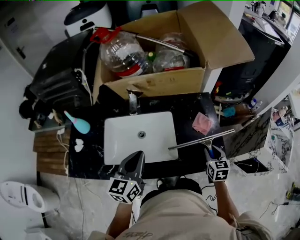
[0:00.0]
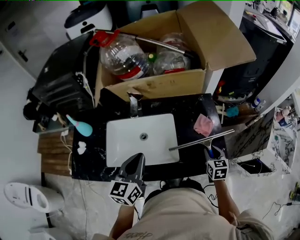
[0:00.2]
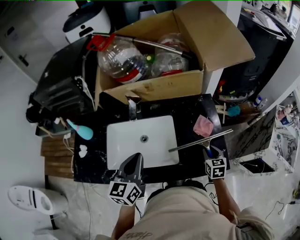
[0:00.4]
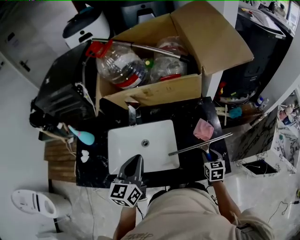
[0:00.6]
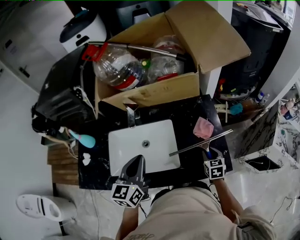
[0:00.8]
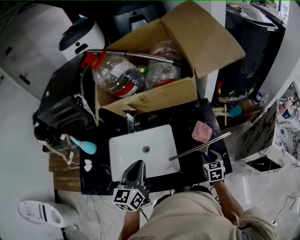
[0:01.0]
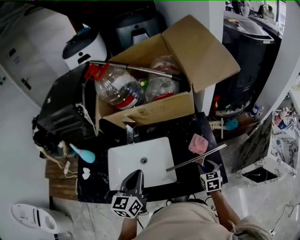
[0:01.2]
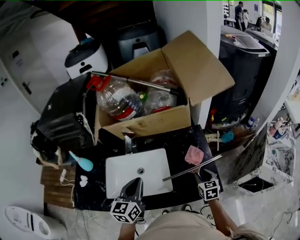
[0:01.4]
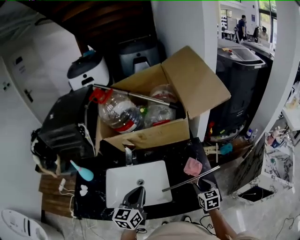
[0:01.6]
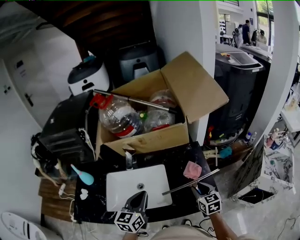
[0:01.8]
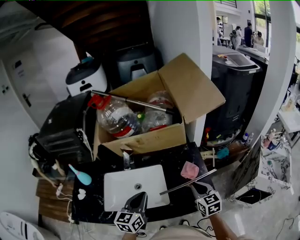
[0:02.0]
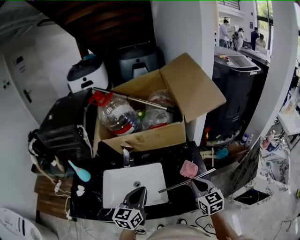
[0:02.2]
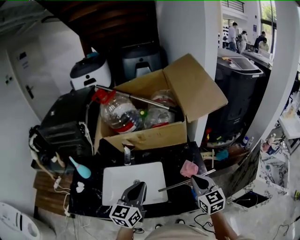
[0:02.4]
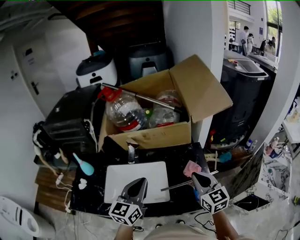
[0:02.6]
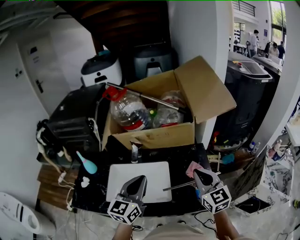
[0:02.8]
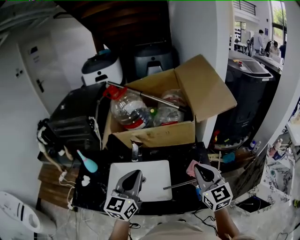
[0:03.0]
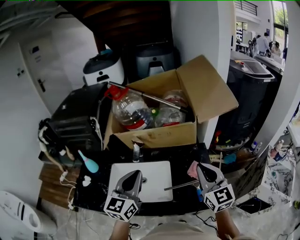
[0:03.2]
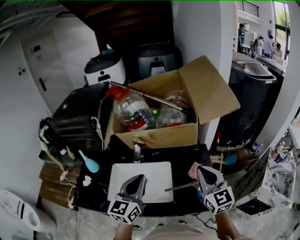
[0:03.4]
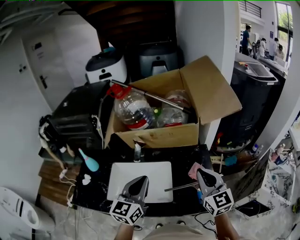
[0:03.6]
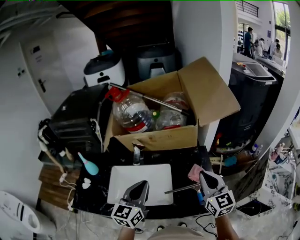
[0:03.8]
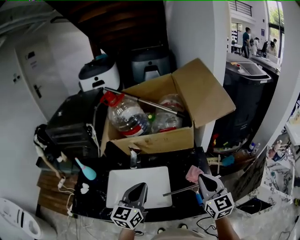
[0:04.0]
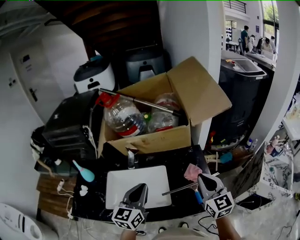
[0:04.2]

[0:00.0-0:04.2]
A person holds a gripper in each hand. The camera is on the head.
0:01.4 to 0:02.8: The left gripper is displaced upward by some 10 cm. The right gripper is displaced upward by approximately 25 cm, changes its angle by about 40 degrees, and closes.
0:02.8 to 0:04.2: The grippers make only small movements.

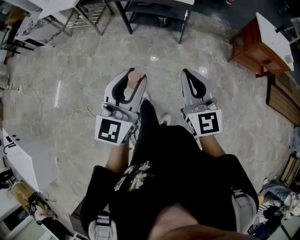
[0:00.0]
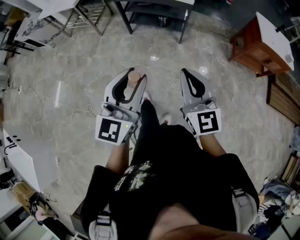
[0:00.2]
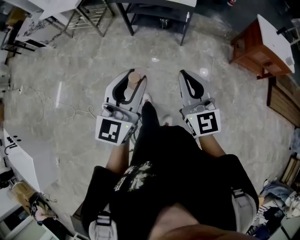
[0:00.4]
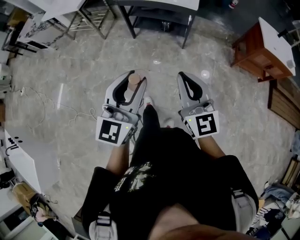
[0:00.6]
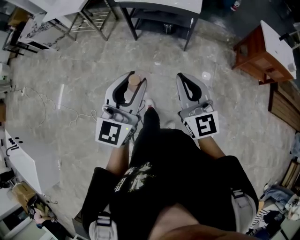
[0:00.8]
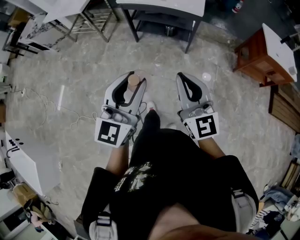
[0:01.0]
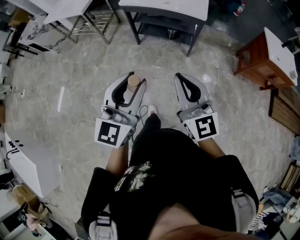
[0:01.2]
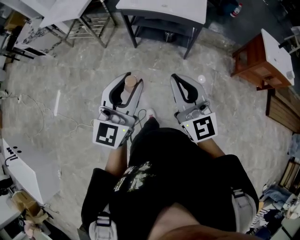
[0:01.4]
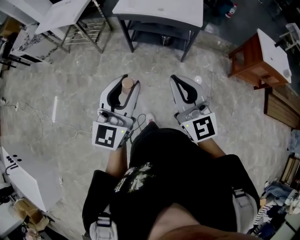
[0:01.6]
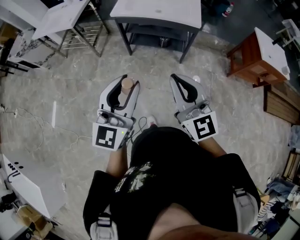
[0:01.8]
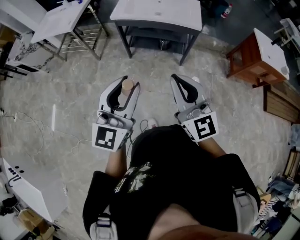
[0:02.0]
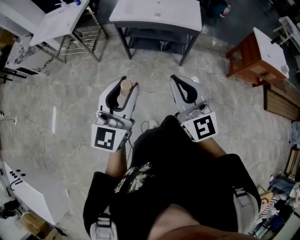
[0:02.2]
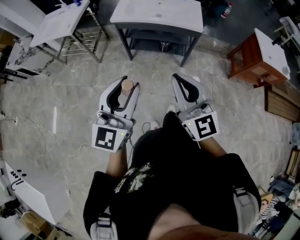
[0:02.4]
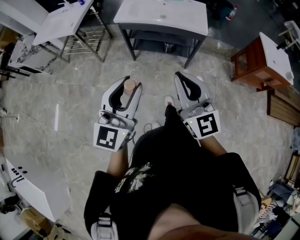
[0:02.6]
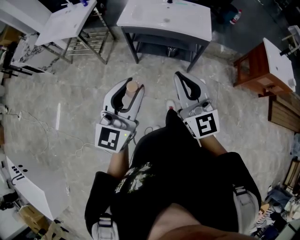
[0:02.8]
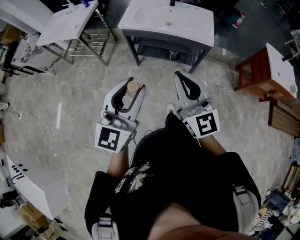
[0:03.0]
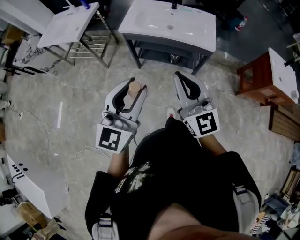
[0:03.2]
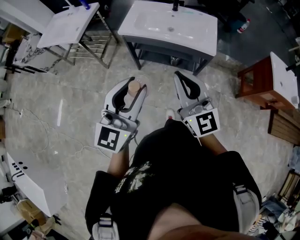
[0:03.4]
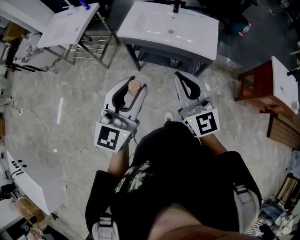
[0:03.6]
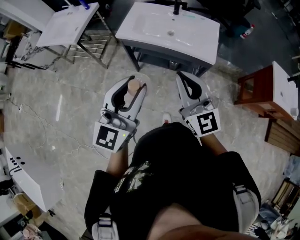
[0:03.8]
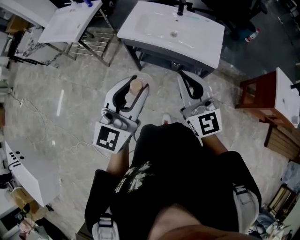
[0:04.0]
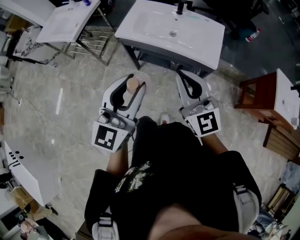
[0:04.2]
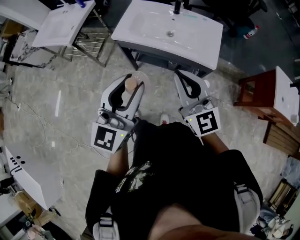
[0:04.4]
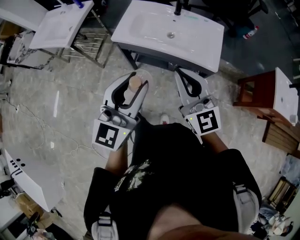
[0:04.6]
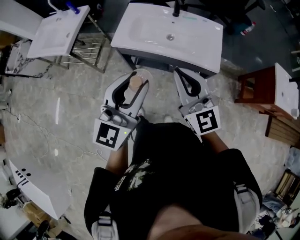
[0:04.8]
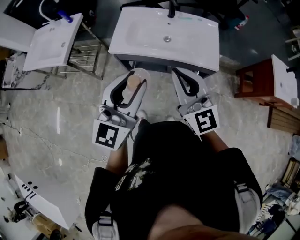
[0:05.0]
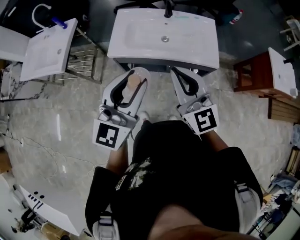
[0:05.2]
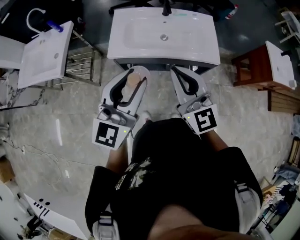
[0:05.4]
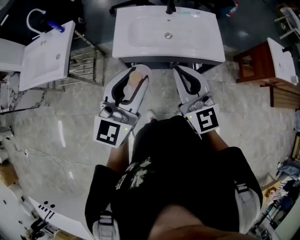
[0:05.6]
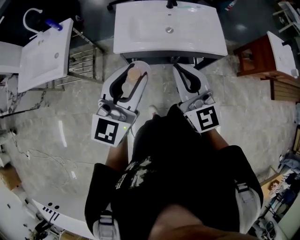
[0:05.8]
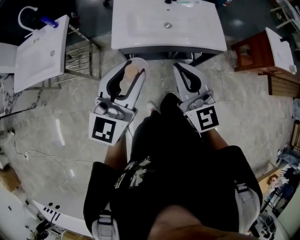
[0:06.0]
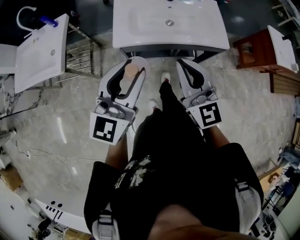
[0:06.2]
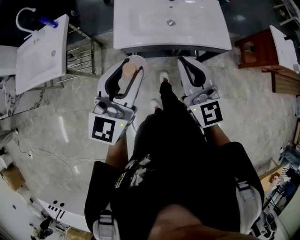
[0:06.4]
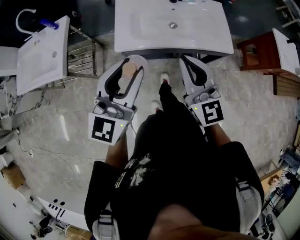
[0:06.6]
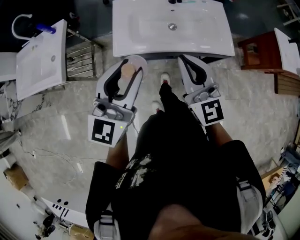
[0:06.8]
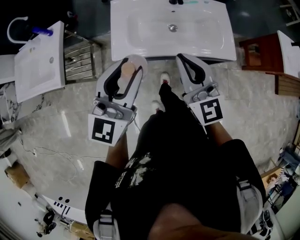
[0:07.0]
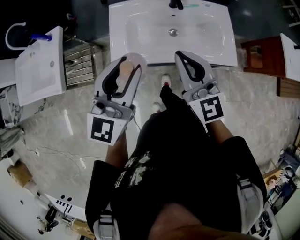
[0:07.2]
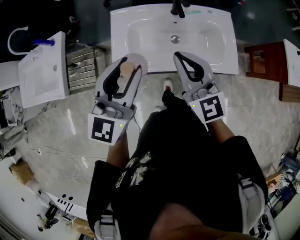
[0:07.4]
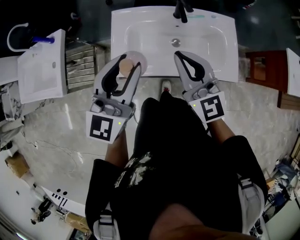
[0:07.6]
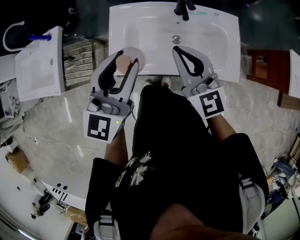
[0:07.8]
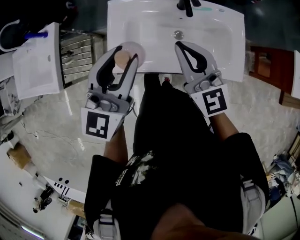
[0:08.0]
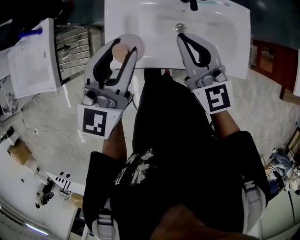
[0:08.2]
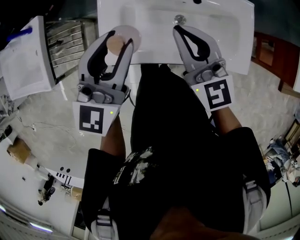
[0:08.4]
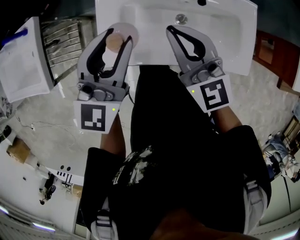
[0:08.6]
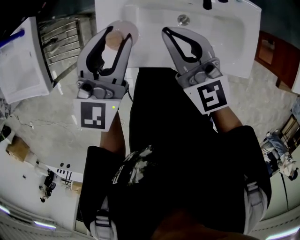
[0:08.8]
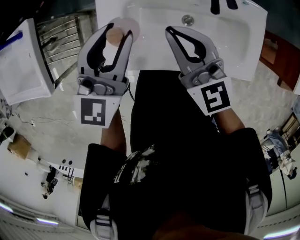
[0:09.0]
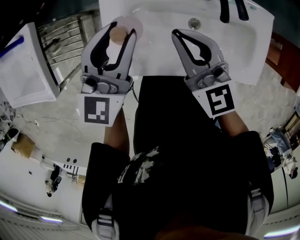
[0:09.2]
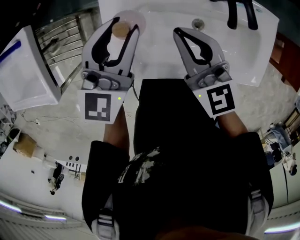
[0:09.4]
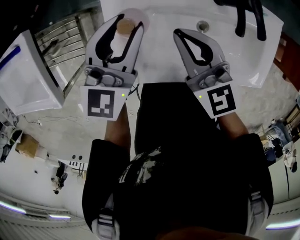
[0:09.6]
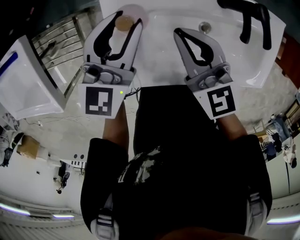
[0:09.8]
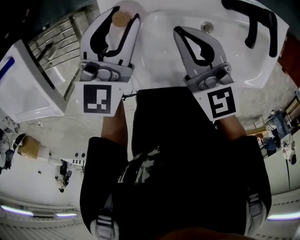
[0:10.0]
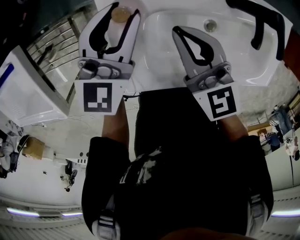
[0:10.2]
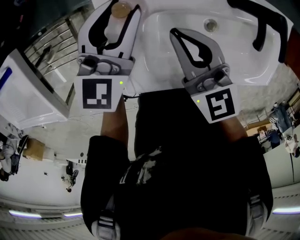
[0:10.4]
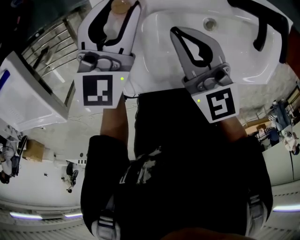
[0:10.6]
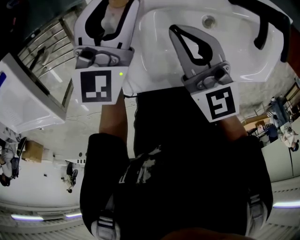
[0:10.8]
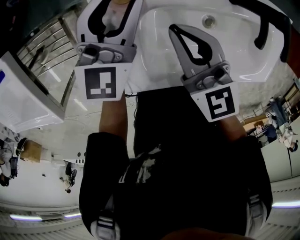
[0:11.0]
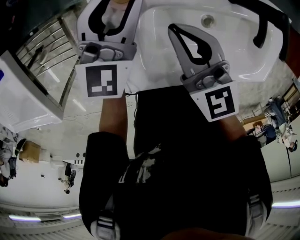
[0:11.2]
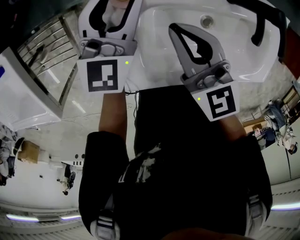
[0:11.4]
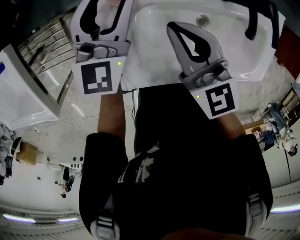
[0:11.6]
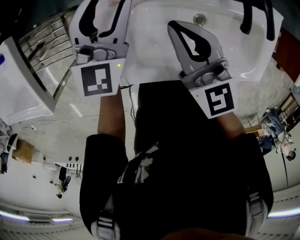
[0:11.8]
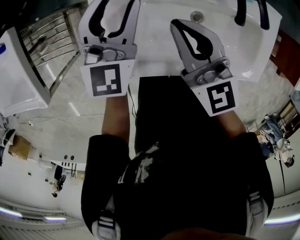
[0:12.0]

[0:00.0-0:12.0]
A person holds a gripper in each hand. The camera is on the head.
0:00.0 to 0:01.6: The two grippers go approximately 25 cm forward and to the left.
0:01.6 to 0:03.0: Both grippers travel together forward, approximately 20 cm.
0:03.0 to 0:04.4: Both grippers move forward, about 25 cm.
0:04.4 to 0:06.0: The two grippers go approximately 25 cm to the left and forward. The left gripper rotates some 20 degrees. Meanwhile the right gripper swivels some 20 degrees.
0:06.0 to 0:07.6: Both grippers travel together forward, some 30 cm.
0:07.6 to 0:09.0: The left gripper goes roughly 25 cm forward and downward. The right gripper shifts approximately 25 cm forward, downward and to the left.
0:09.0 to 0:10.4: The right gripper moves downward, forward and to the left, about 20 cm. Meanwhile the left gripper travels forward and downward by approximately 25 cm.
0:10.4 to 0:12.0: Both grippers move backward, roughly 5 cm.

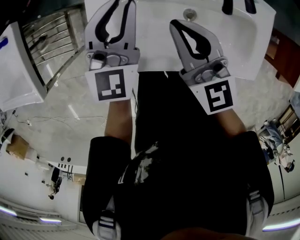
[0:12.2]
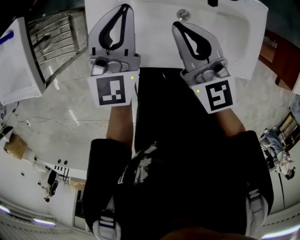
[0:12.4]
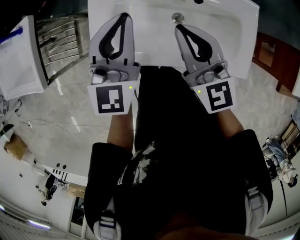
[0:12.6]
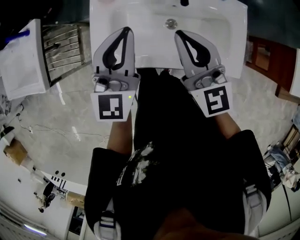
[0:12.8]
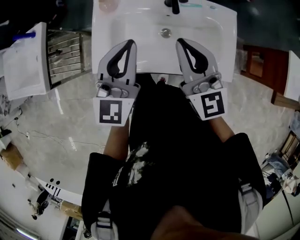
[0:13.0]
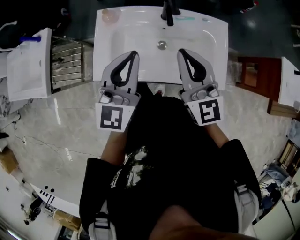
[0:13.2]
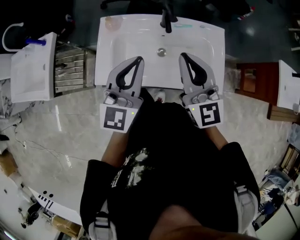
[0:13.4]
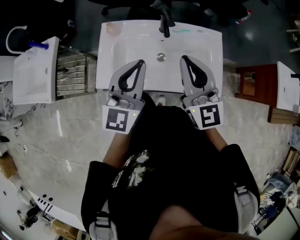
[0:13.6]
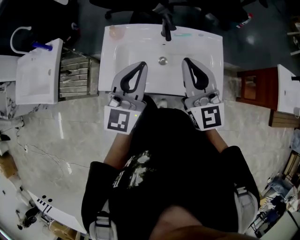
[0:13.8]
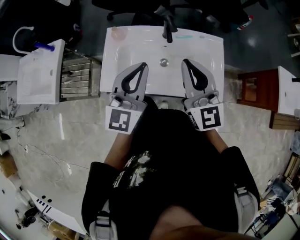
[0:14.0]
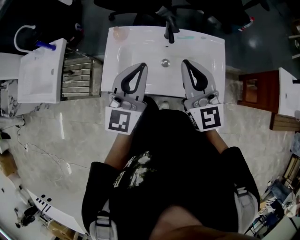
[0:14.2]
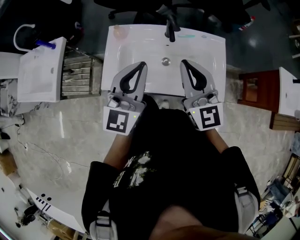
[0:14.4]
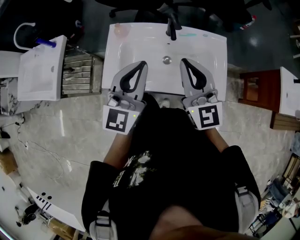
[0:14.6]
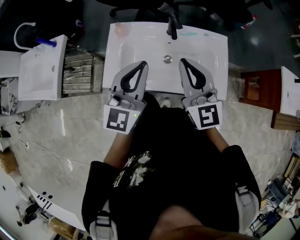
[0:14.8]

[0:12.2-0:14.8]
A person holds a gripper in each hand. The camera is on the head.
0:12.2 to 0:13.4: The left gripper is displaced backward, upward and to the right by about 35 cm, while the right gripper travels upward, backward and to the right by some 35 cm, and turns by roughly 20 degrees.
0:13.4 to 0:14.8: The grippers make only small movements.

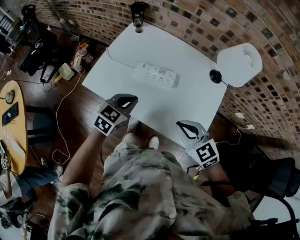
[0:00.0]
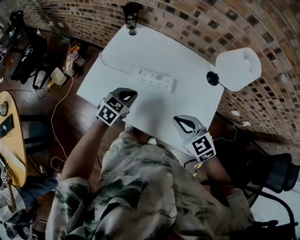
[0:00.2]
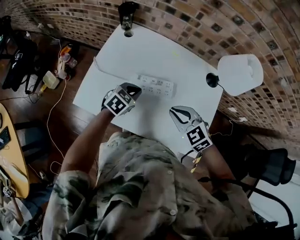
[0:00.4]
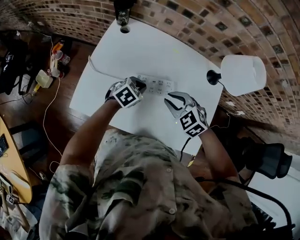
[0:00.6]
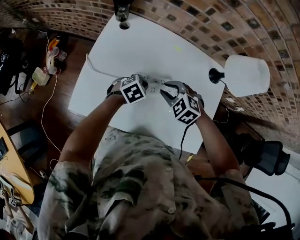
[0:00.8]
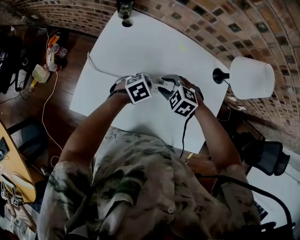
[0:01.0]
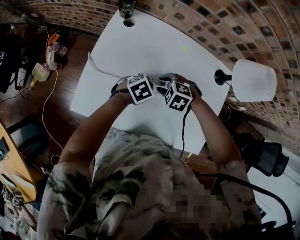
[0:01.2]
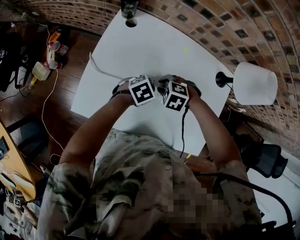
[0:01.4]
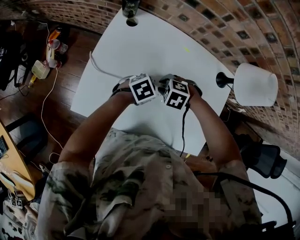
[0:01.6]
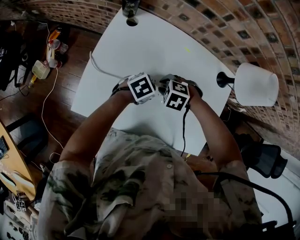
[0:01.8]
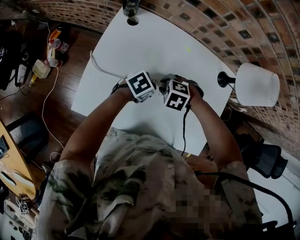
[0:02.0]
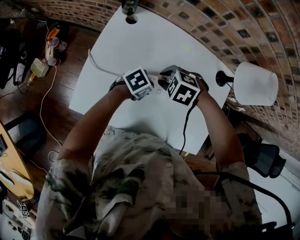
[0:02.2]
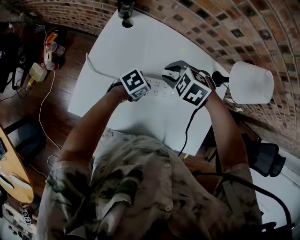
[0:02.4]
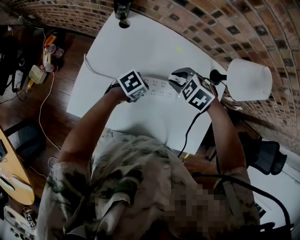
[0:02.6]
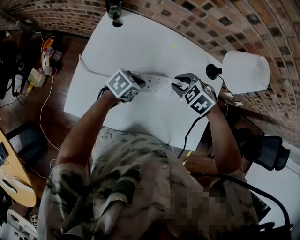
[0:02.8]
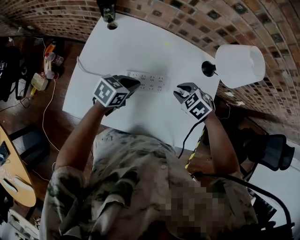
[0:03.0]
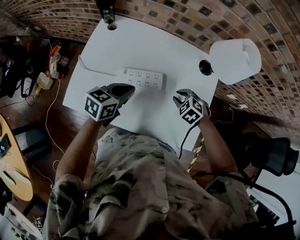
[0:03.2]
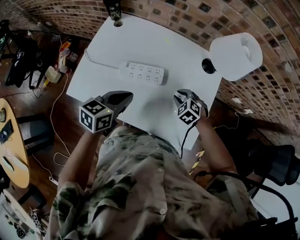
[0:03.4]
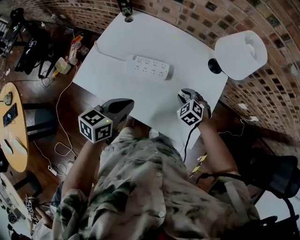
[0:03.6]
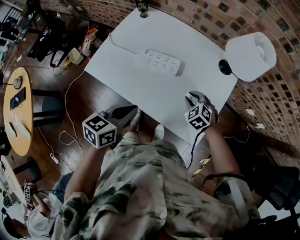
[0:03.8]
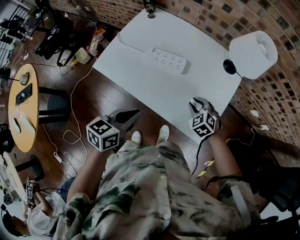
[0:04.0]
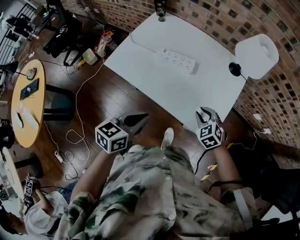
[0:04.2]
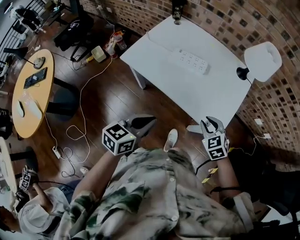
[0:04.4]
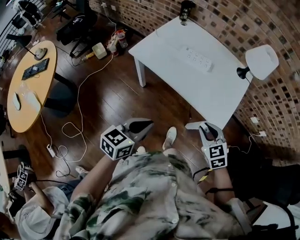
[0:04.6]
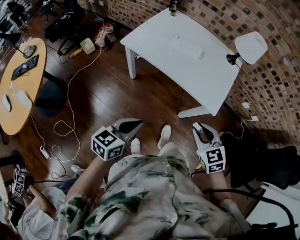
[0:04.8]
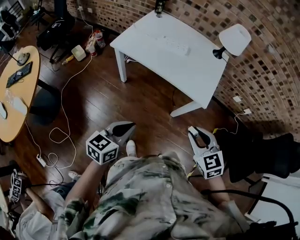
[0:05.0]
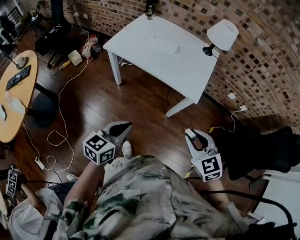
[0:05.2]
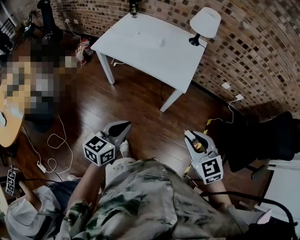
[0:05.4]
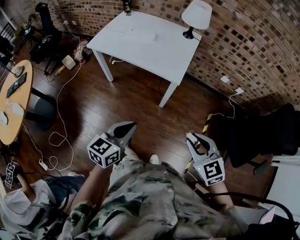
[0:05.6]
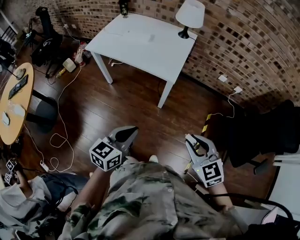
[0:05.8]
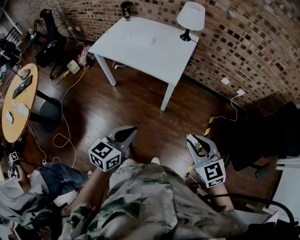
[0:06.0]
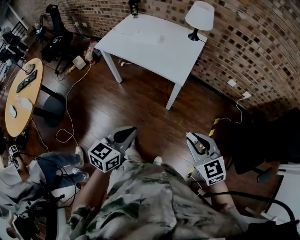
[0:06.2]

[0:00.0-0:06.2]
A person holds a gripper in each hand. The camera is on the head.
0:00.0 to 0:01.6: The right gripper changes place by roughly 35 cm, tips its fingers downward by approximately 40 degrees, and opens its fingers. Meanwhile the left gripper shifts by about 25 cm, and changes its angle by approximately 40 degrees.
0:01.6 to 0:03.2: The left gripper heads upward, covering about 10 cm, and changes its angle by some 40 degrees. The right gripper travels upward and back again, approximately 10 cm each way, and swivels roughly 30 degrees.
0:03.2 to 0:04.6: The right gripper goes about 35 cm backward and upward, and swivels approximately 30 degrees. Meanwhile the left gripper moves backward, some 40 cm, and changes its angle by some 20 degrees.
0:04.6 to 0:06.2: The left gripper heads to the right and backward, covering about 30 cm; the right gripper is displaced backward and to the right by approximately 35 cm.
